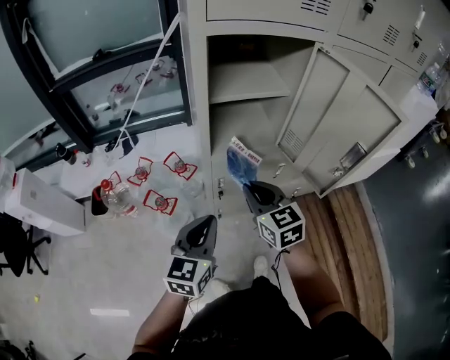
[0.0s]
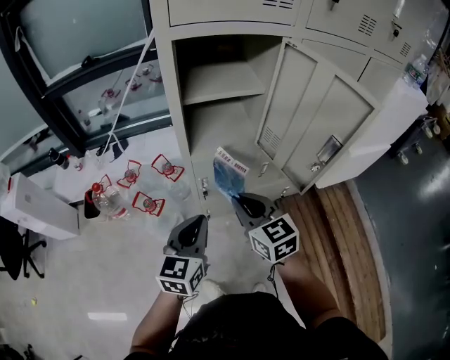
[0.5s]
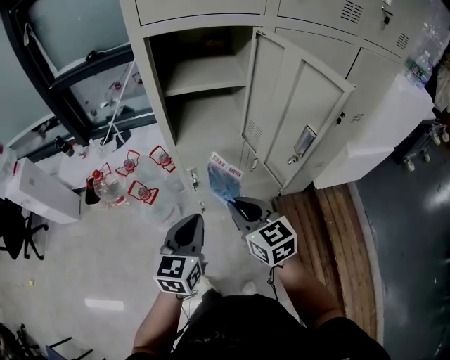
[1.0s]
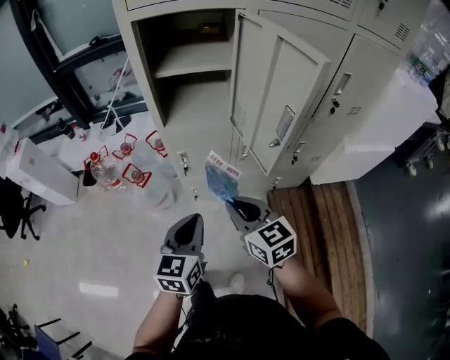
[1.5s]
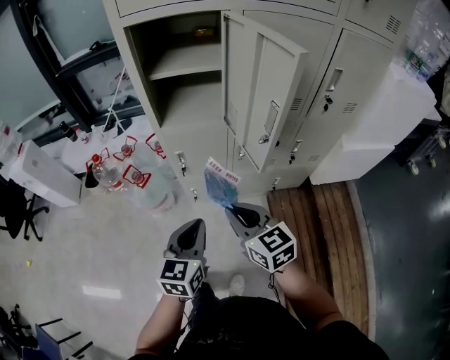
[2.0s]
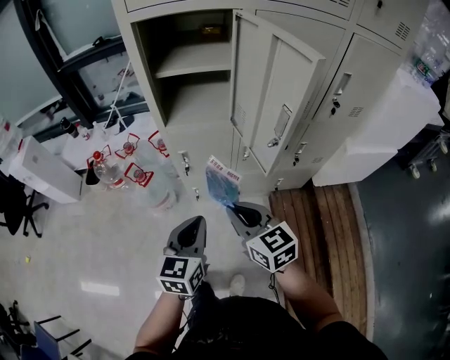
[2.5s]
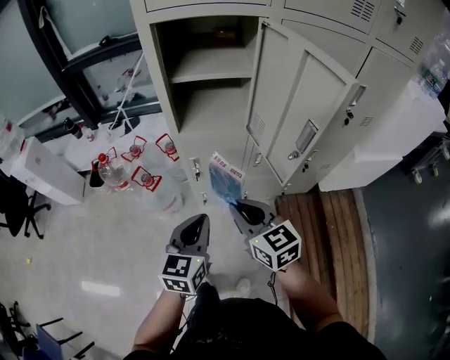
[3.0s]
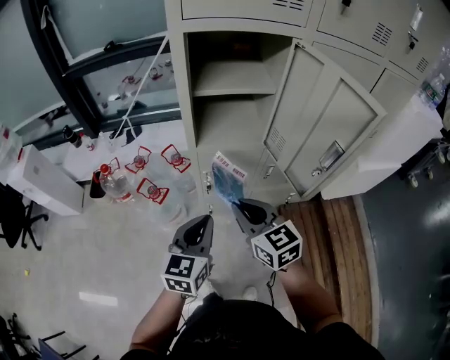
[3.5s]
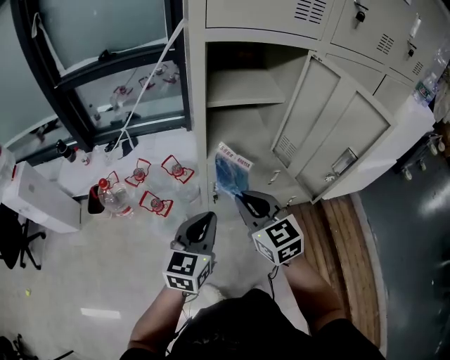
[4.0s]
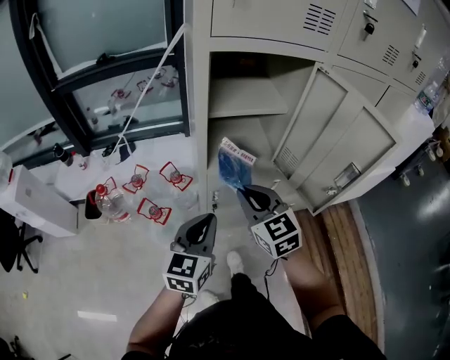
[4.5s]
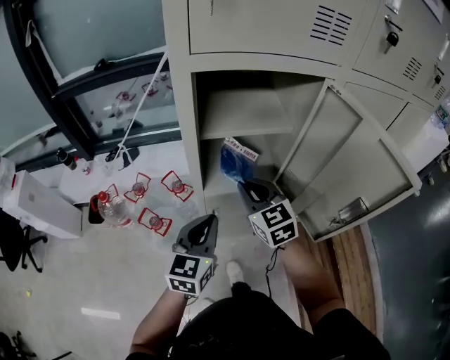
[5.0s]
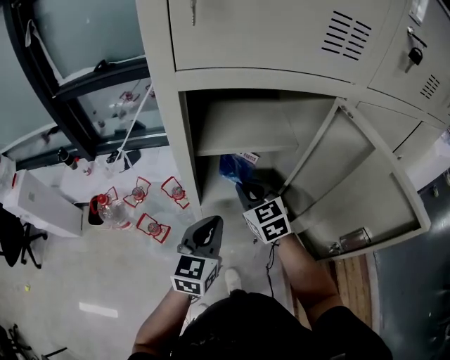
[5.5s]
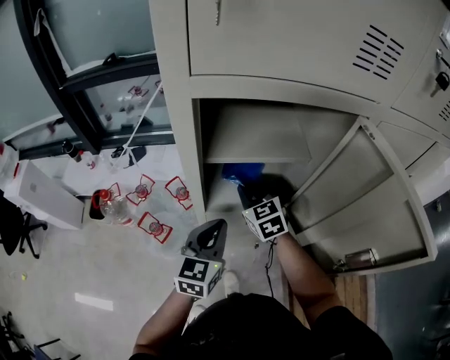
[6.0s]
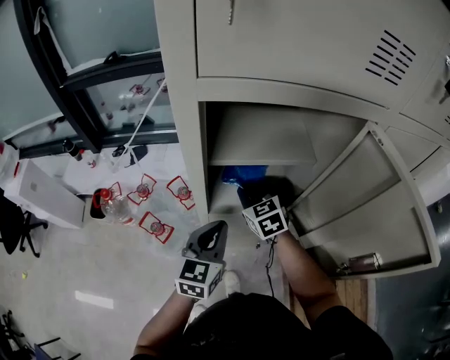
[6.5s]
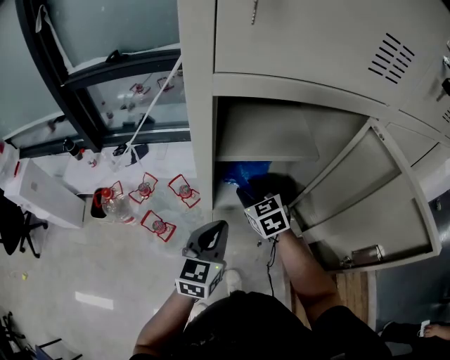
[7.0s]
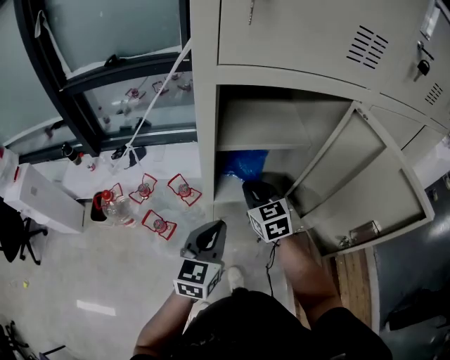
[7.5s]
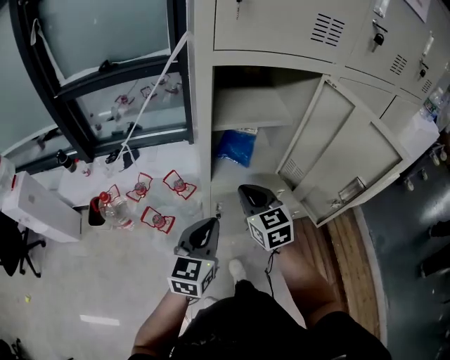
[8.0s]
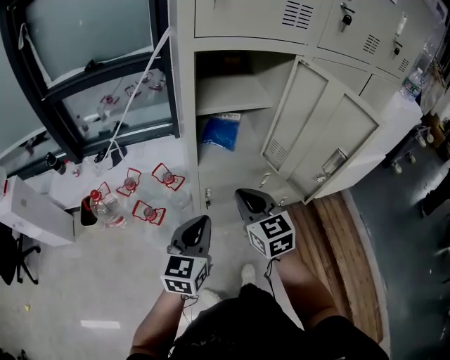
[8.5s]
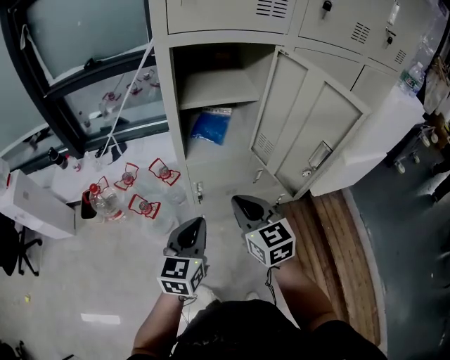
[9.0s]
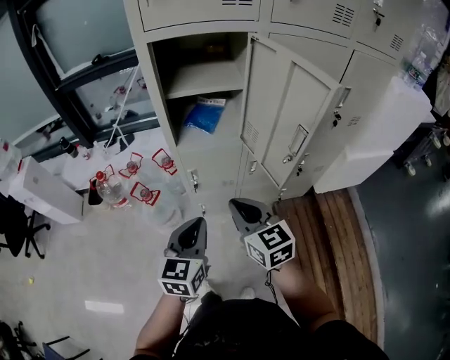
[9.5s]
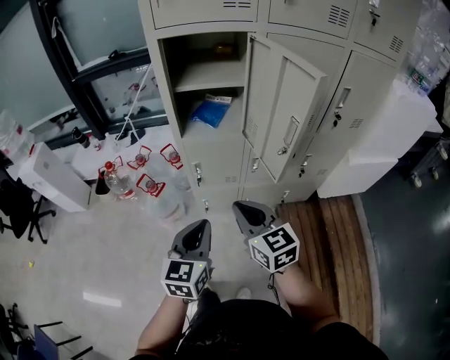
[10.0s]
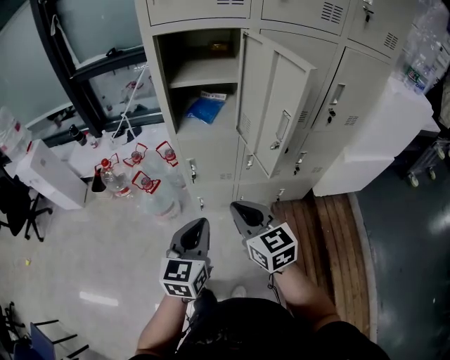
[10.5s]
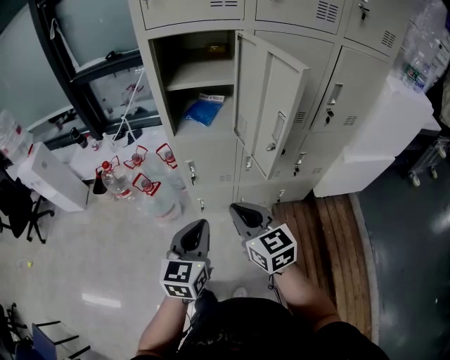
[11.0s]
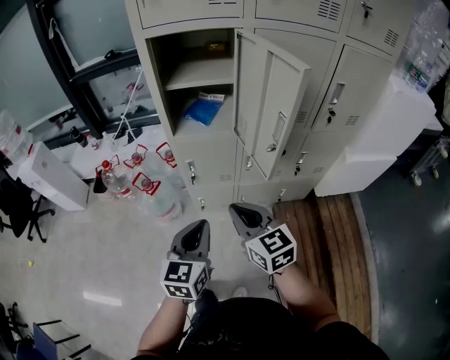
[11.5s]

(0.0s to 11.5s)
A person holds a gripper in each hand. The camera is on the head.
0.0s - 2.0s: The right gripper is displaced backward and to the right by some 25 cm; the left gripper travels to the right and backward by about 25 cm.
2.0s - 4.0s: Both grippers travel together forward and to the left, roughly 20 cm.
4.0s - 6.0s: The grippers both shift forward by roughly 25 cm.
6.0s - 7.5s: The left gripper changes place by roughly 5 cm; the right gripper ends up approximately 5 cm from where it was, and opens and closes again.
7.5s - 9.5s: Both grippers move backward, about 25 cm.
9.5s - 11.5s: Both grippers move backward, roughly 5 cm.

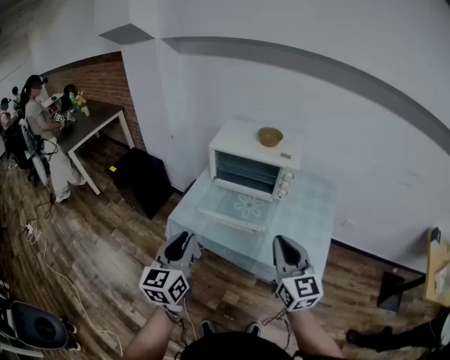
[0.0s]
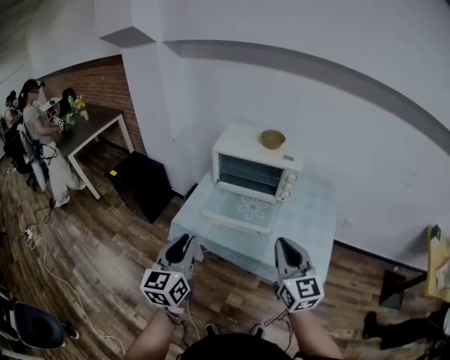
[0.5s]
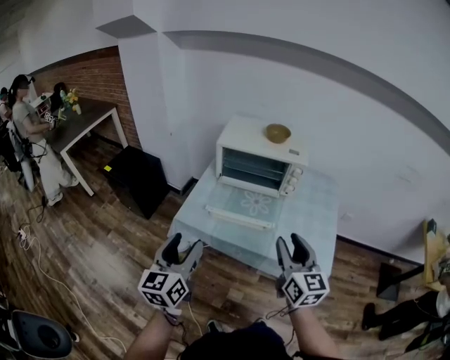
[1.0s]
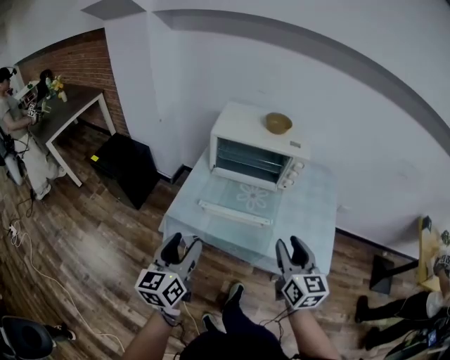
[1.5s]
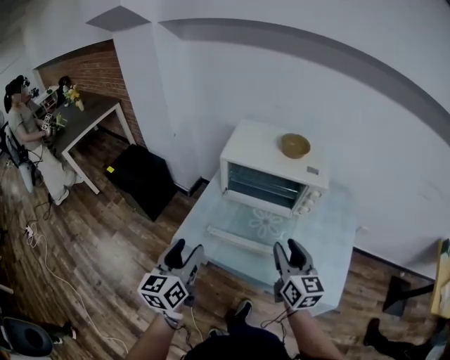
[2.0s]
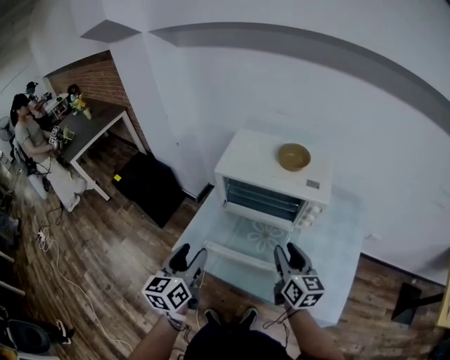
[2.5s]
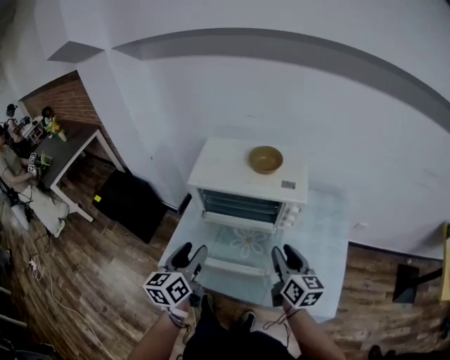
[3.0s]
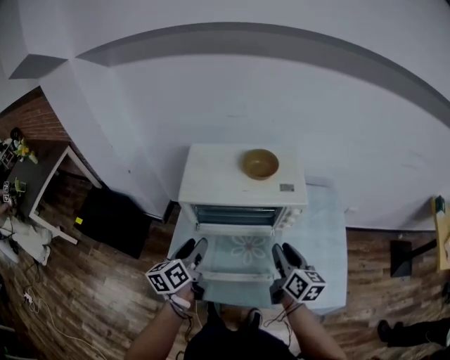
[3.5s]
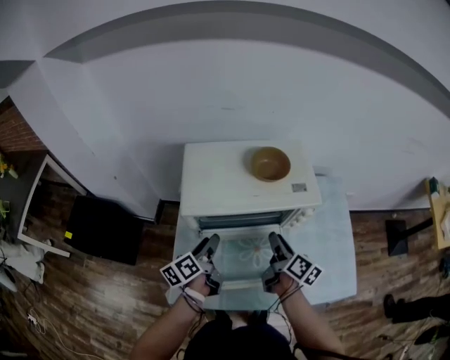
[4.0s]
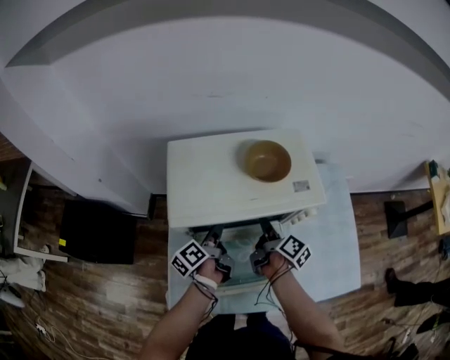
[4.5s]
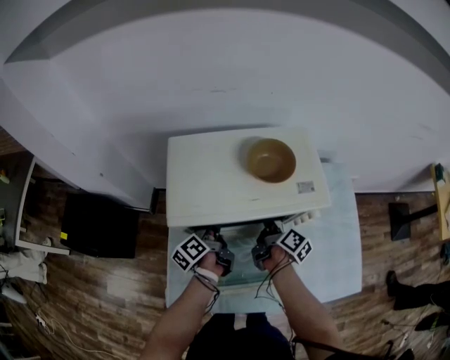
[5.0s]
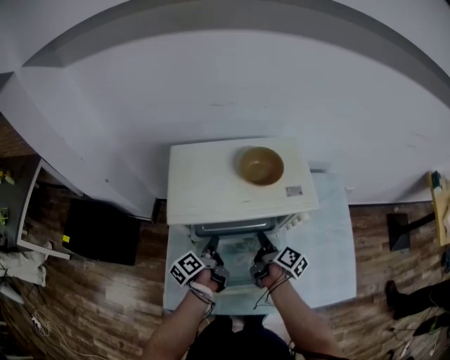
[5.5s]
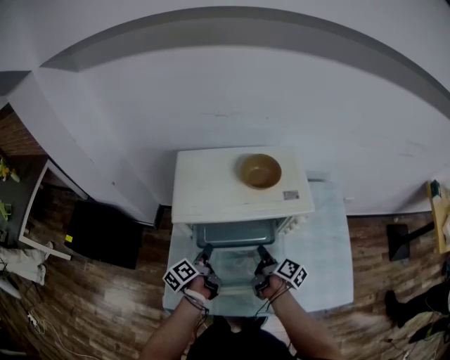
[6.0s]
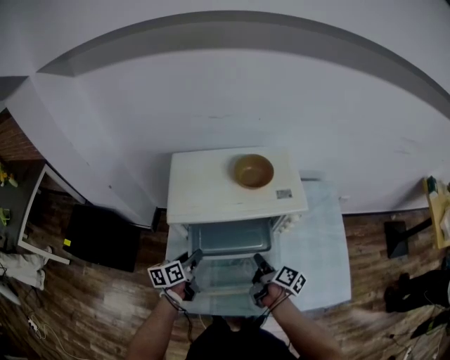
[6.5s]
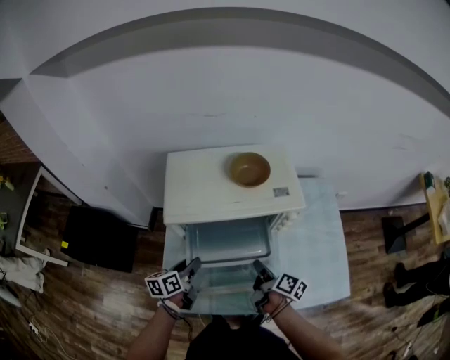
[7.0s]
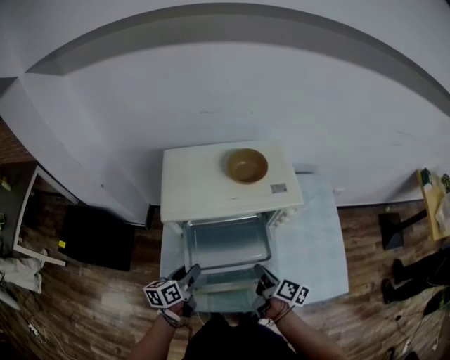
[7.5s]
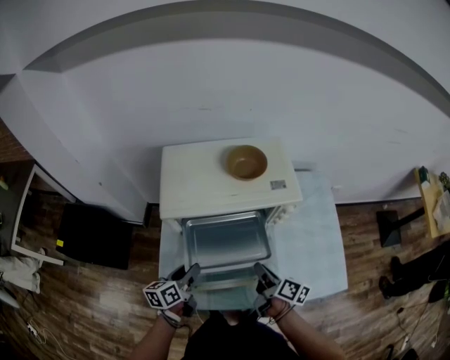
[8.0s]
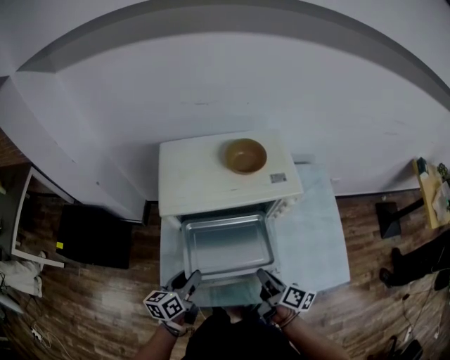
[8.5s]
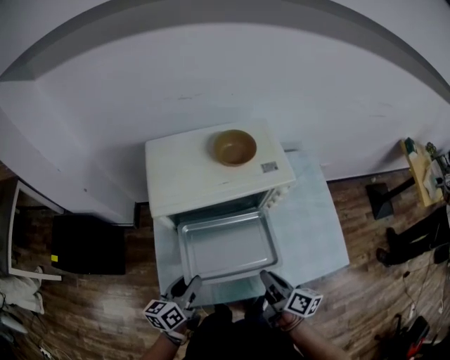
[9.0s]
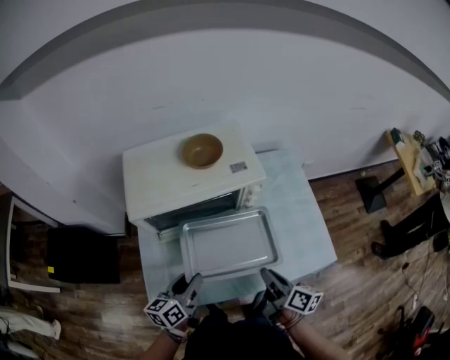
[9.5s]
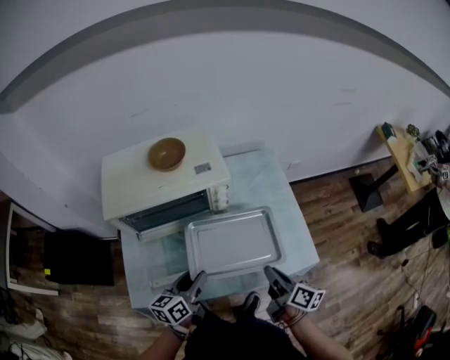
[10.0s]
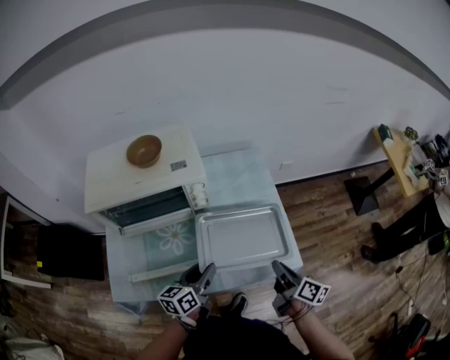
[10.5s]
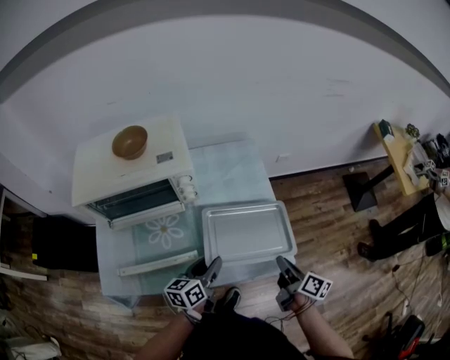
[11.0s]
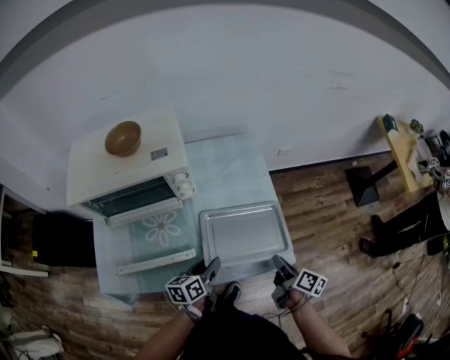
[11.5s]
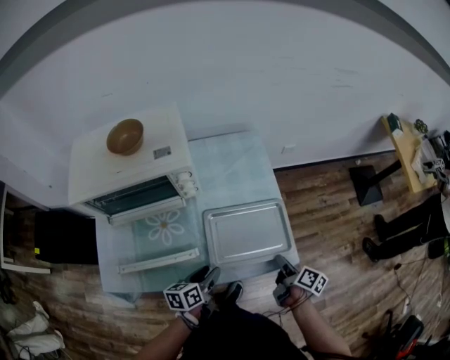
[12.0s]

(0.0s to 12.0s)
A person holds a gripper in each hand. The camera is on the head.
0.0s - 2.0s: The right gripper shifts some 20 cm forward and downward, and opens. Meanwhile the left gripper travels forward, to the left and downward by about 20 cm, and opens up.
2.0s - 4.0s: The left gripper moves roughly 35 cm, and rotates about 40 degrees. Meanwhile the right gripper ends up some 25 cm from where it was, and rotates around the line of its fingers by about 50 degrees, clockwise from behind.
4.0s - 6.0s: The two grippers go roughly 10 cm downward. The right gripper reaches about 10 cm forward, then returns, and closes; the left gripper goes forward and returns, roughly 10 cm each way, and closes, then reopens.
6.0s - 8.0s: Both grippers move backward, about 10 cm. The left gripper rotates about 30 degrees.
8.0s - 10.0s: The left gripper goes some 20 cm to the right; the right gripper travels to the right and backward by roughly 20 cm.
10.0s - 12.0s: Both grippers travel together to the right and downward, about 25 cm. The right gripper swivels roughly 30 degrees.

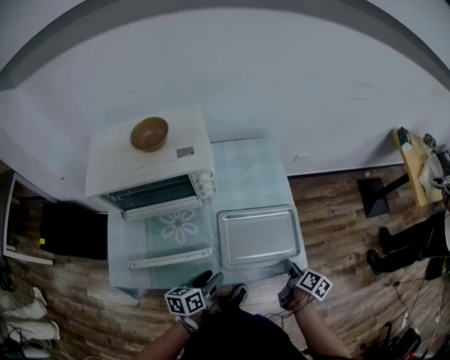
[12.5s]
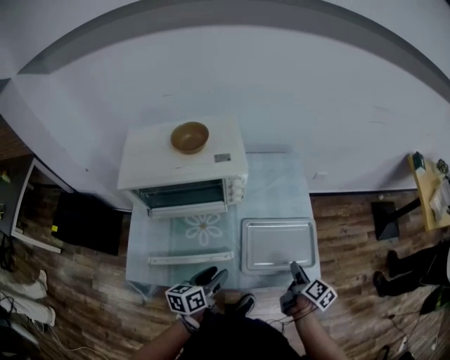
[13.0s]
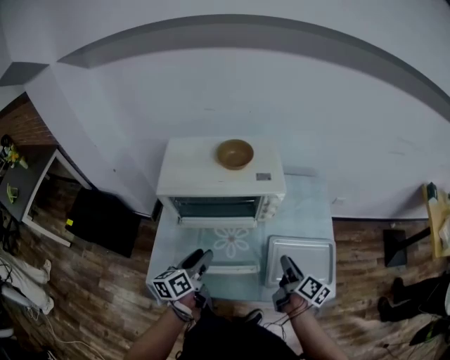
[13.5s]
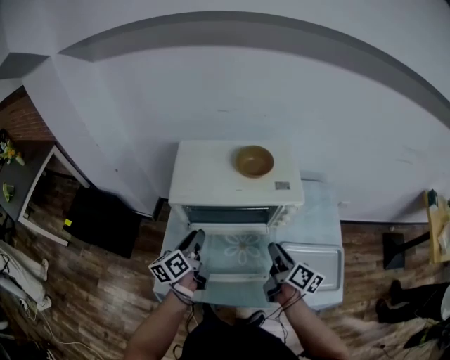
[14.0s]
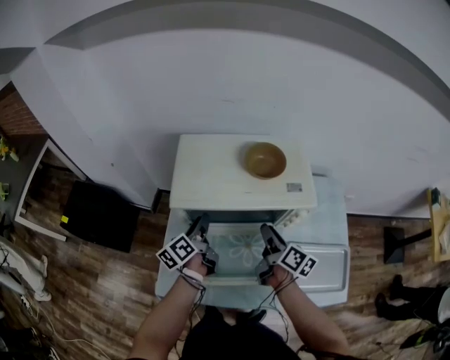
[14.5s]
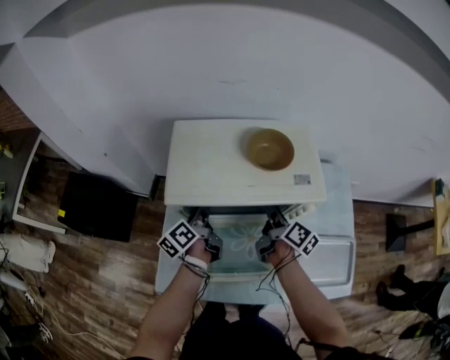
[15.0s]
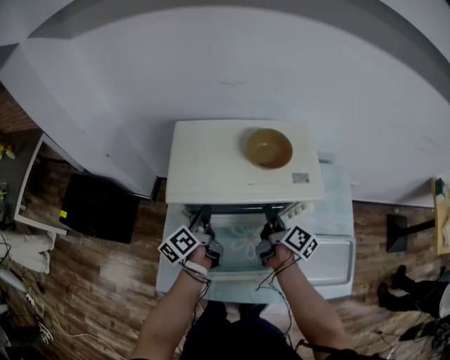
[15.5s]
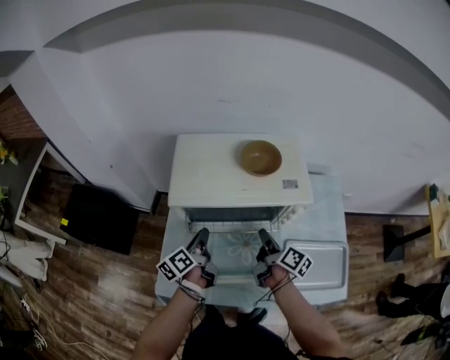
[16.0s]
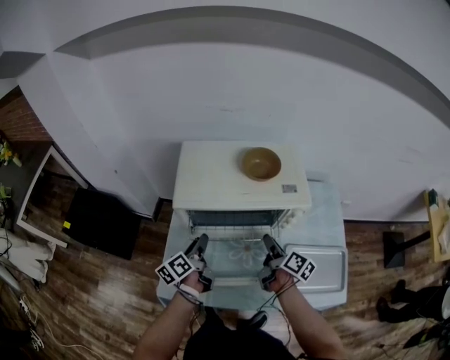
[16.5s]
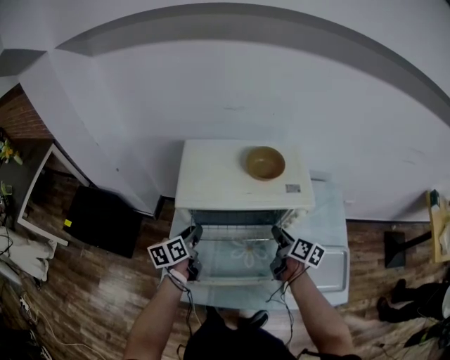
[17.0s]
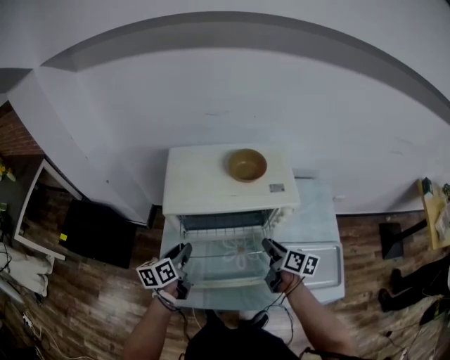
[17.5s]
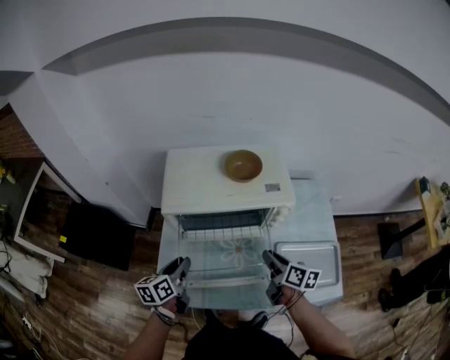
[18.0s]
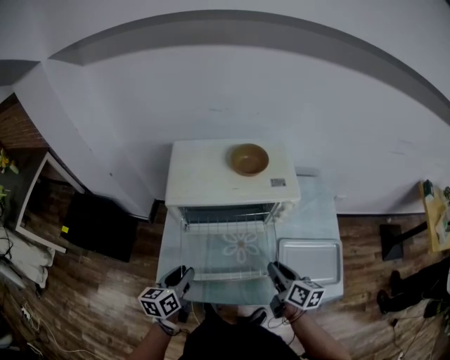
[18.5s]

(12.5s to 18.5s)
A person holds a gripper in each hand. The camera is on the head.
12.5s - 14.5s: The pair of grippers is taken some 40 cm. The left gripper rotates some 40 degrees. Meanwhile the right gripper rotates some 30 degrees.
14.5s - 16.5s: The left gripper shifts approximately 5 cm backward, while the right gripper reaches roughly 5 cm forward, then returns, and closes and opens again.
16.5s - 18.5s: The two grippers go some 15 cm backward. The right gripper changes its angle by some 20 degrees, while the left gripper swivels roughly 30 degrees.
